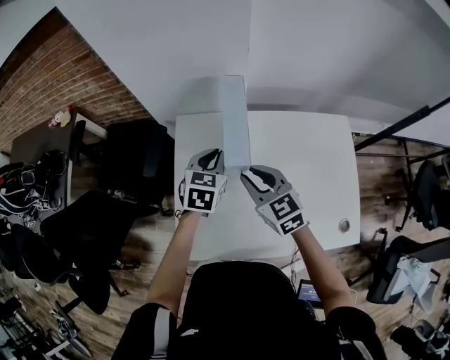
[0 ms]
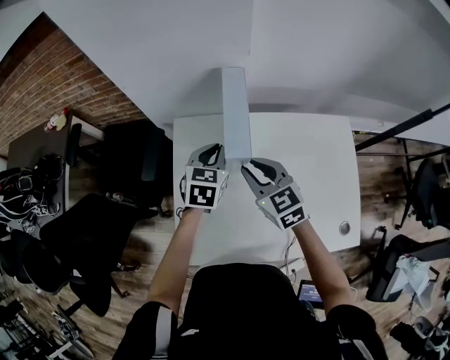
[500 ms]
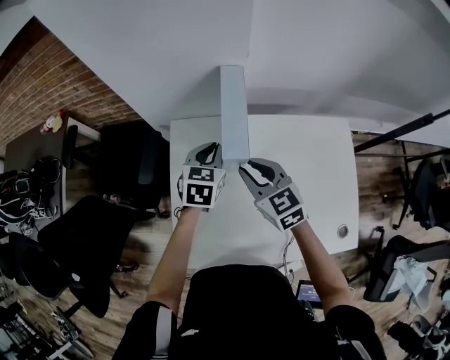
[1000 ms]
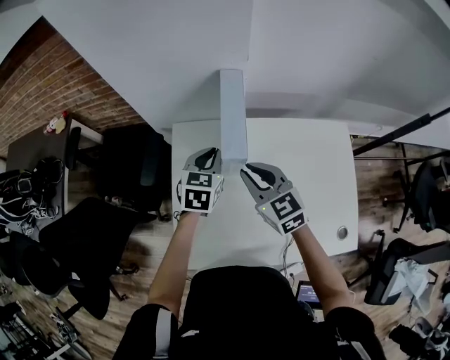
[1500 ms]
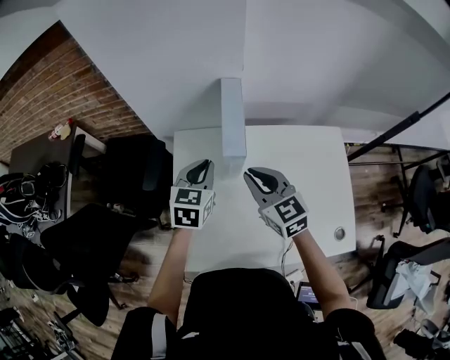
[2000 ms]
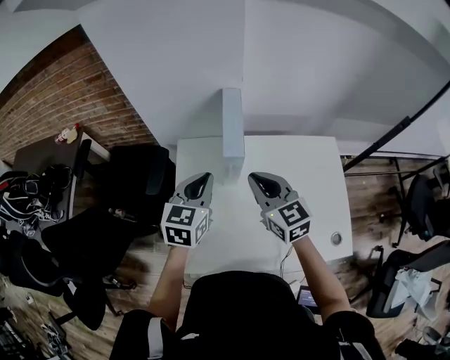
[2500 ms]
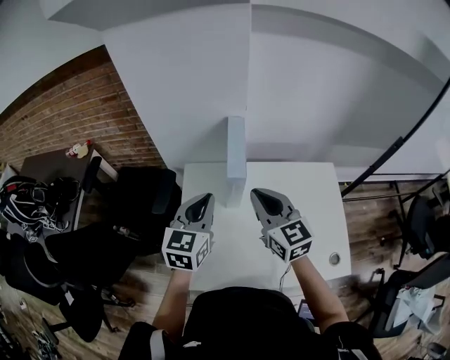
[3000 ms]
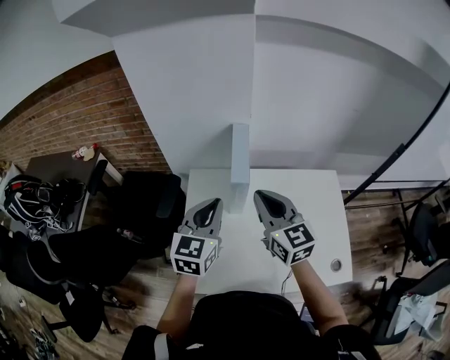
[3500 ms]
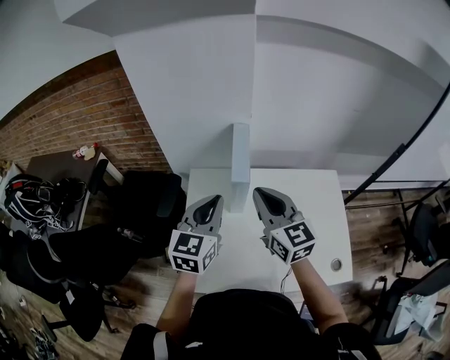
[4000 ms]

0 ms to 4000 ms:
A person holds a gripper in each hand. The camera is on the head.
0 ms to 2000 ms: The left gripper shifts by roughly 5 cm. Meanwhile the right gripper shifts by approximately 5 cm.
2000 ms to 4000 ms: The right gripper shifts some 15 cm upward; the left gripper travels upward and backward by approximately 15 cm.

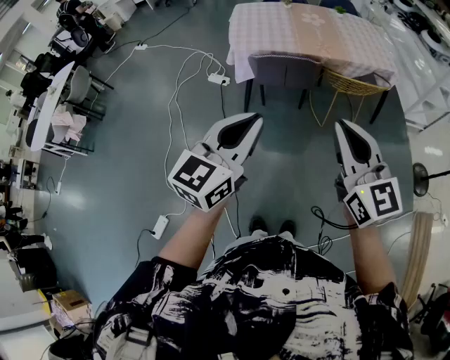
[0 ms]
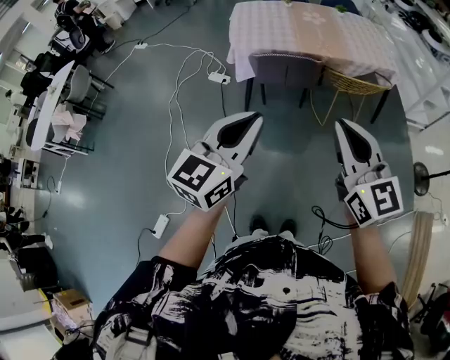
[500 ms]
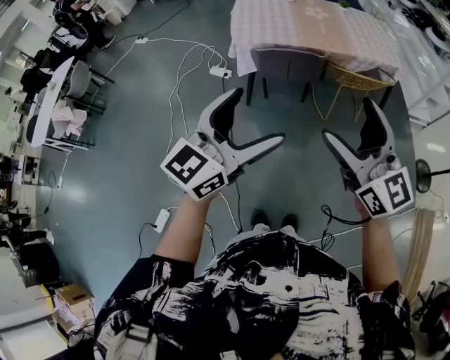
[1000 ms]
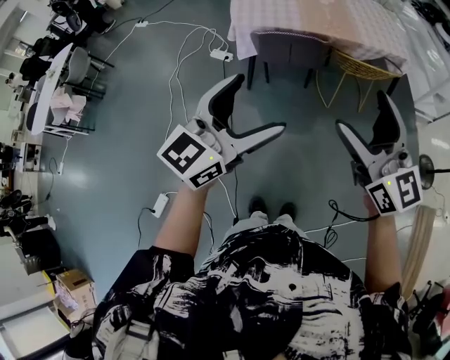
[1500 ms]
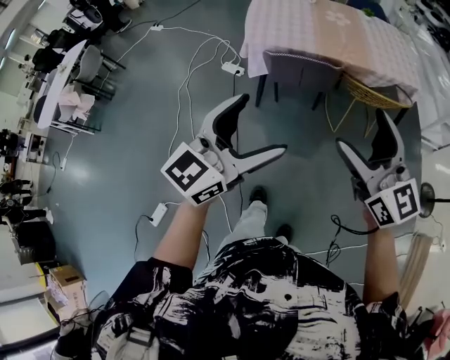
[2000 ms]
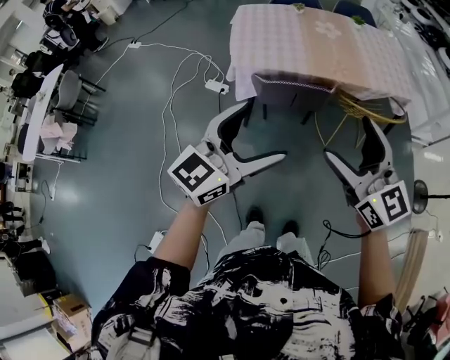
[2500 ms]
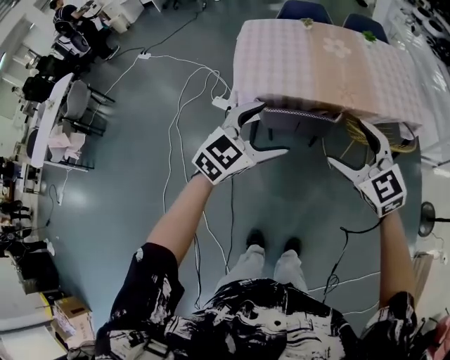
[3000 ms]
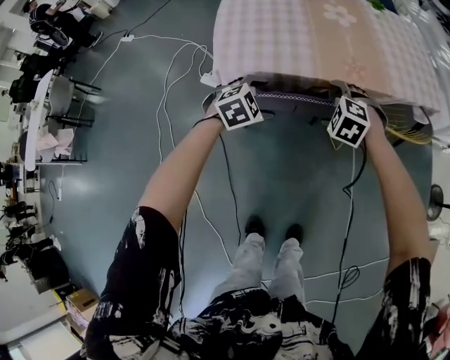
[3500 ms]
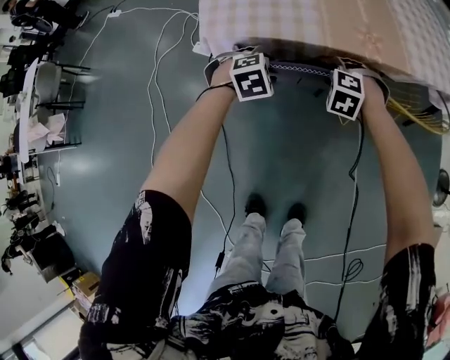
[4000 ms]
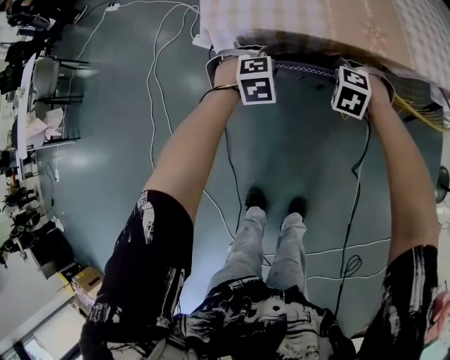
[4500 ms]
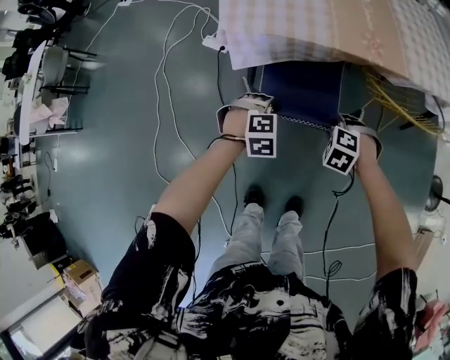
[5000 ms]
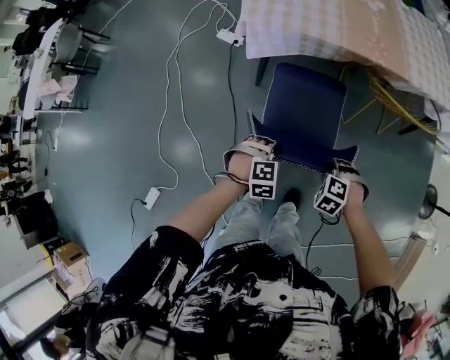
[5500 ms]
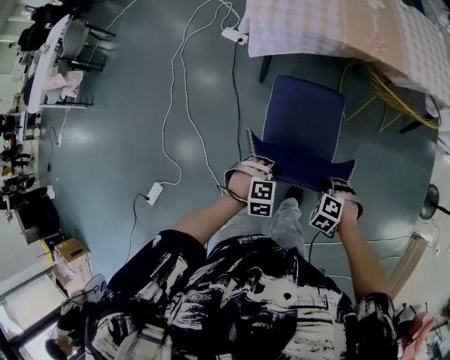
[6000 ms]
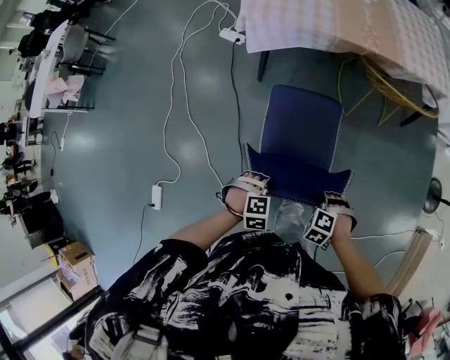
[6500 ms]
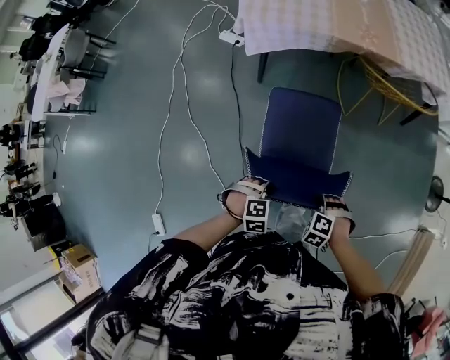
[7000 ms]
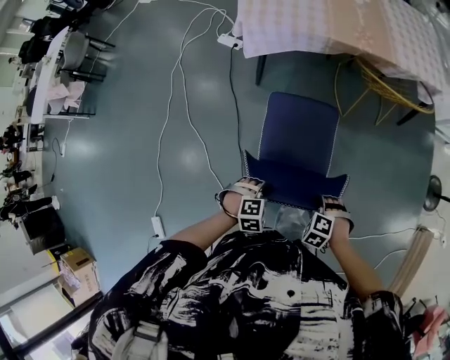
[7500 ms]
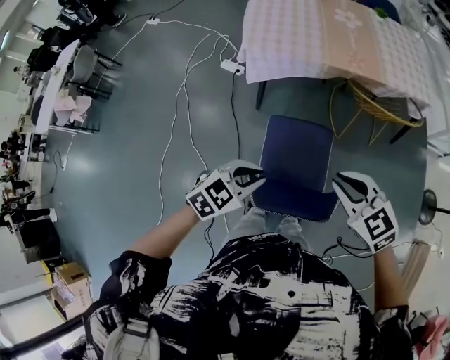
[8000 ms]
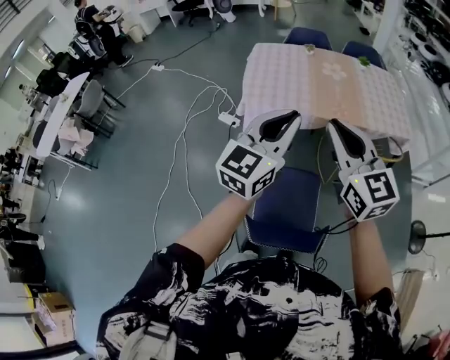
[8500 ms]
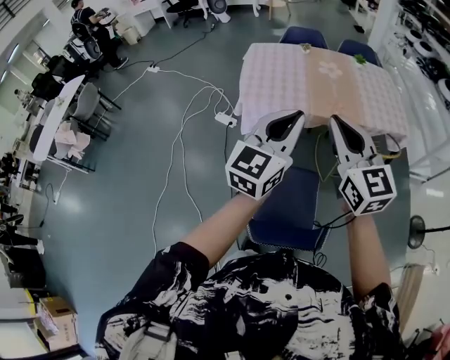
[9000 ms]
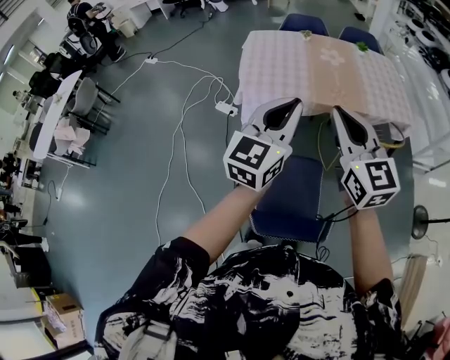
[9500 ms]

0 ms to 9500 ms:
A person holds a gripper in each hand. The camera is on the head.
0 ms to 2000 ms: Both grippers move forward, some 10 cm. The left gripper opens up. Meanwhile the right gripper opens.
2000 ms to 4000 ms: The two grippers travel together, forward, about 50 cm. The two grippers go roughly 50 cm downward. The left gripper tips its fingers downward by approximately 70 degrees, and closes up. The right gripper tips its fingers downward by some 70 degrees, and closes.
4000 ms to 5500 ms: The left gripper shifts by approximately 35 cm. The right gripper moves some 40 cm.
5500 ms to 7500 ms: The left gripper ends up roughly 20 cm from where it was. The right gripper moves some 20 cm.
7500 ms to 9500 ms: Both grippers move upward, approximately 50 cm. The left gripper tilts its fingers approximately 70 degrees upward; the right gripper angles its fingers upward, by some 80 degrees, and closes its fingers.

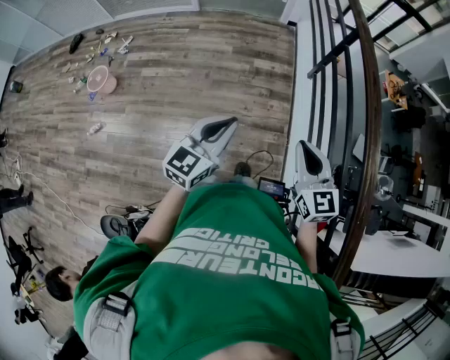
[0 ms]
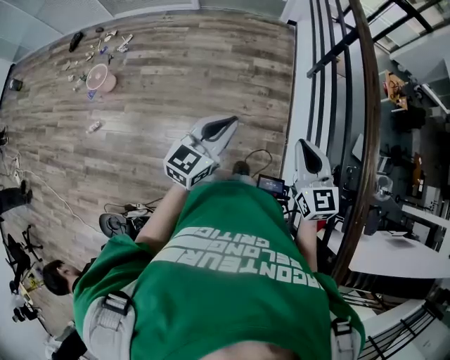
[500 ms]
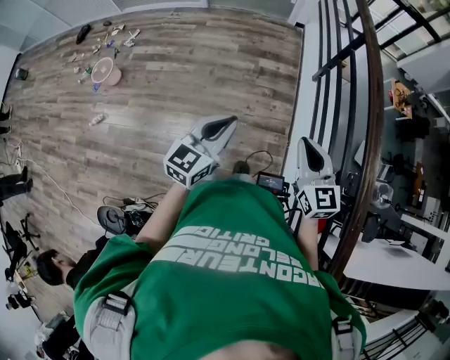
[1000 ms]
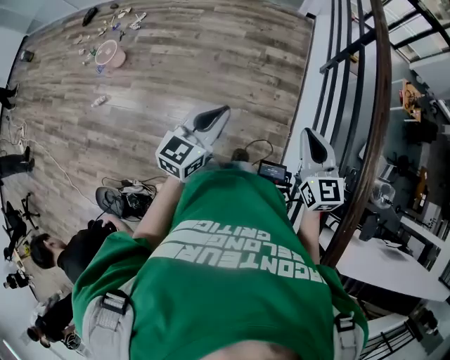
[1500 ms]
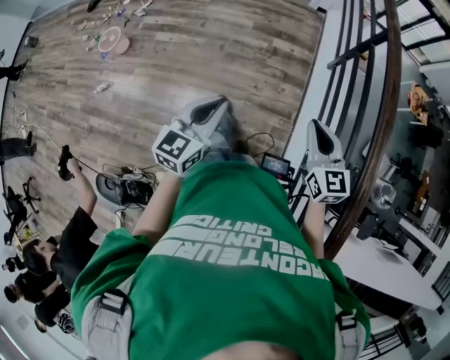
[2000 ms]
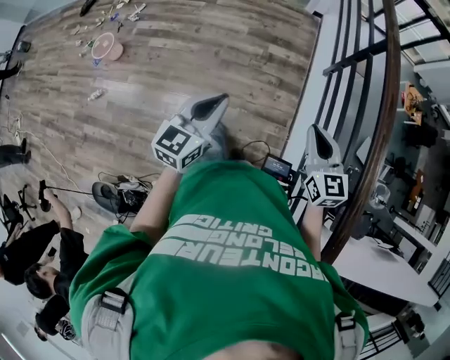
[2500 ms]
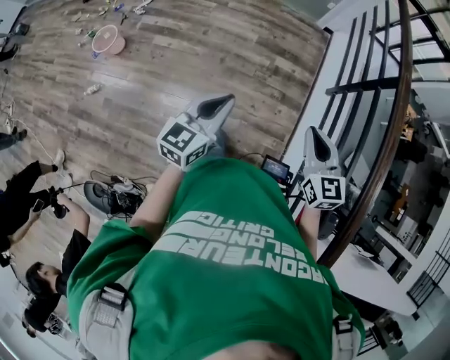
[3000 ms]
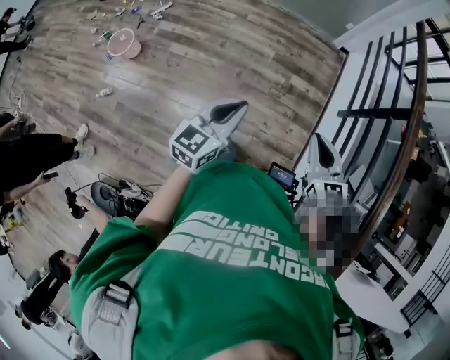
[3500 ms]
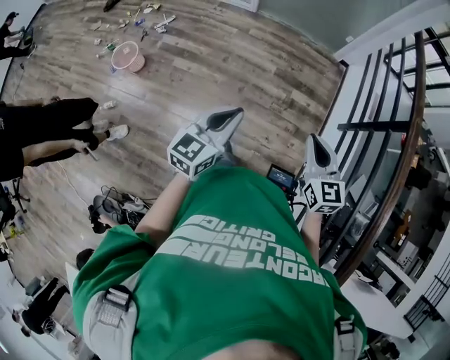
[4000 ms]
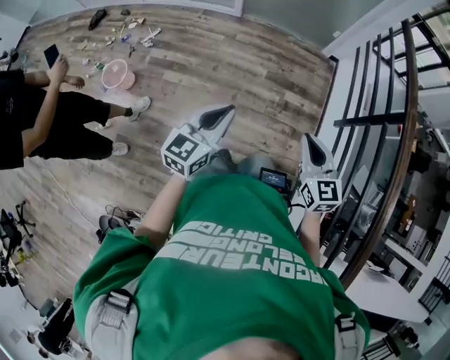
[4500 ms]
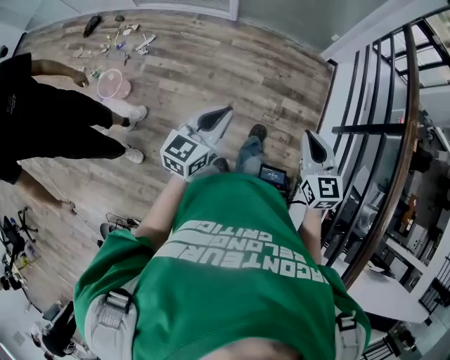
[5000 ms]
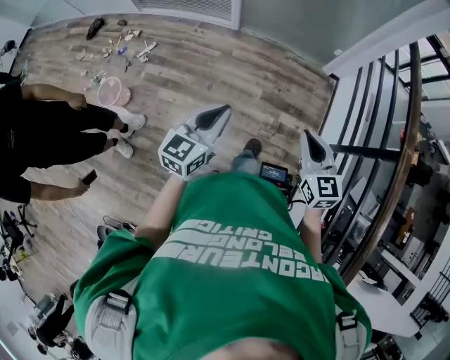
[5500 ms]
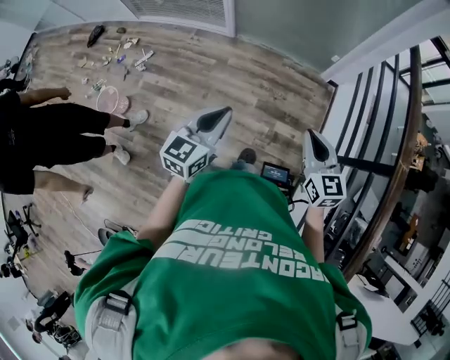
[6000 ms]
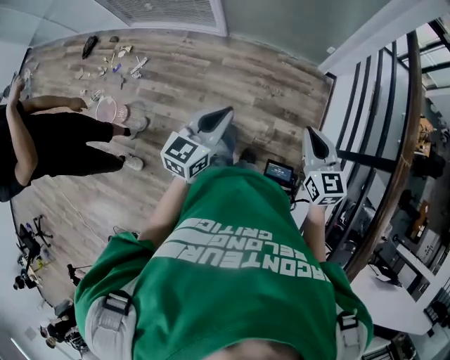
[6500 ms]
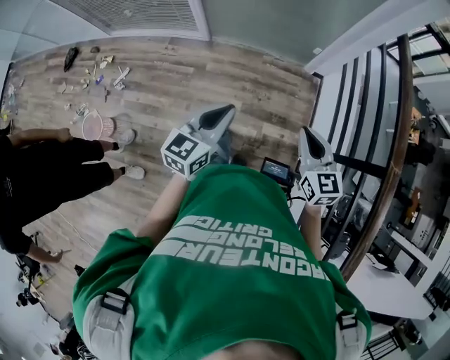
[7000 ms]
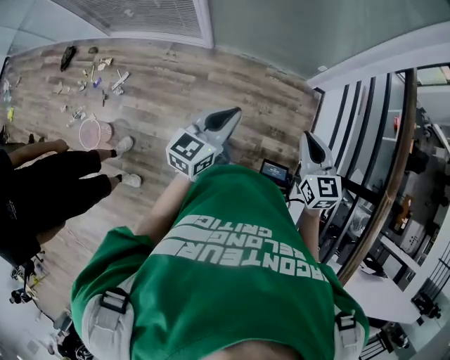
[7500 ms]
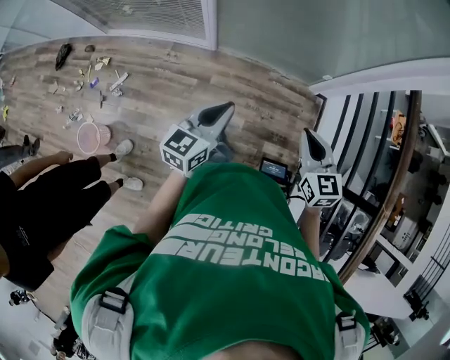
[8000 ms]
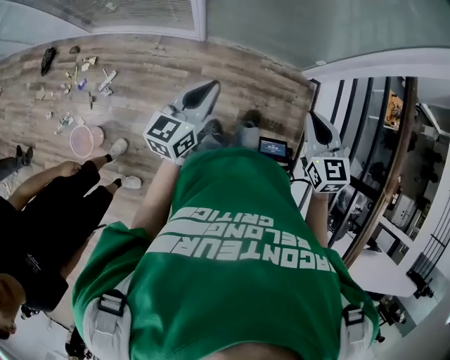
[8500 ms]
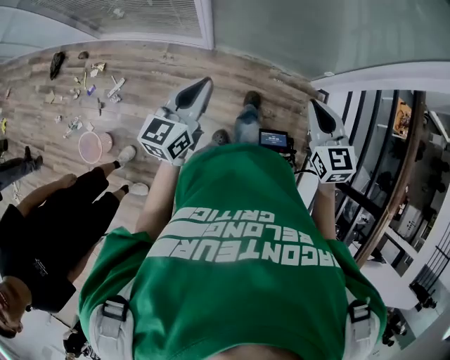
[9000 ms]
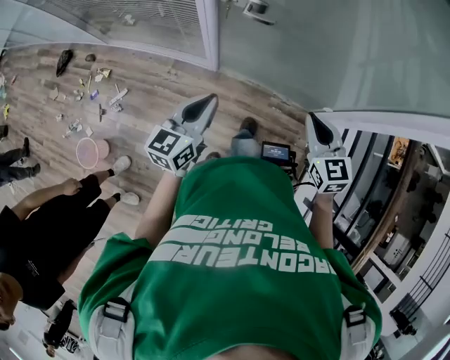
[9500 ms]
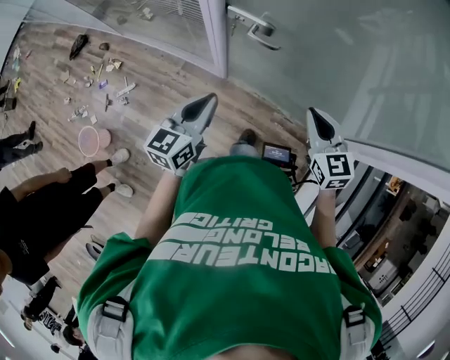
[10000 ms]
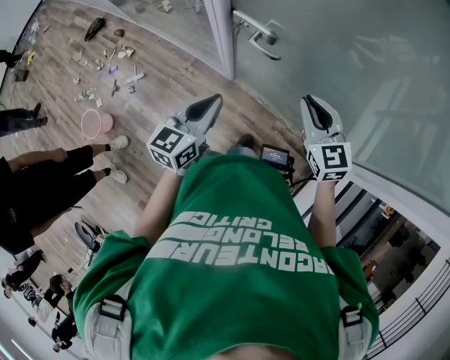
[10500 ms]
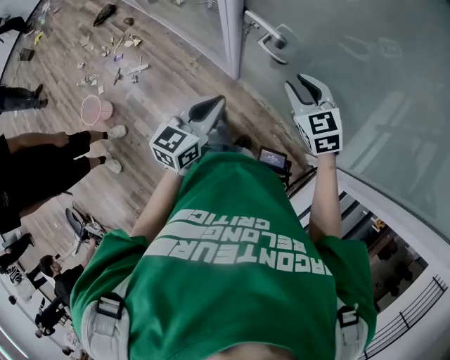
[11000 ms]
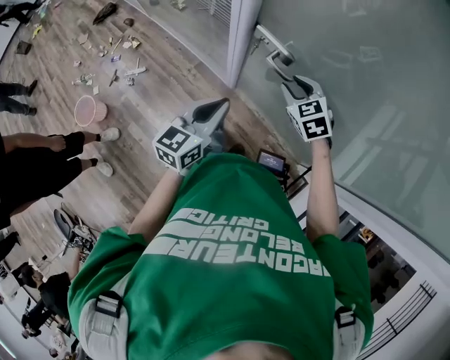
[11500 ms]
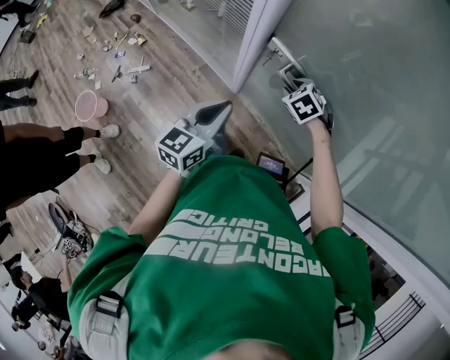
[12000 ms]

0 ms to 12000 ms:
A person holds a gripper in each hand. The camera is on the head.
0 ms to 2000 ms: The right gripper goes some 10 cm forward and to the right.
2000 ms to 4000 ms: Both grippers move forward and to the left, about 30 cm.
4000 ms to 6000 ms: Both grippers move forward, about 30 cm.
6000 ms to 8000 ms: The left gripper moves forward, approximately 30 cm; the right gripper moves forward and to the left, approximately 30 cm.
8000 ms to 10000 ms: The grippers both shift forward by roughly 30 cm. The left gripper turns by approximately 20 degrees. Meanwhile the right gripper rotates roughly 20 degrees.
10000 ms to 12000 ms: The right gripper shifts approximately 25 cm forward, downward and to the left, tilts its fingers approximately 40 degrees downward, and opens its fingers, while the left gripper shifts by roughly 5 cm.

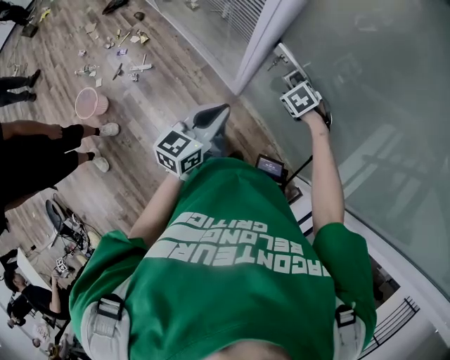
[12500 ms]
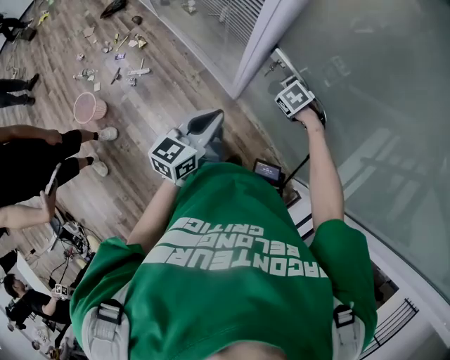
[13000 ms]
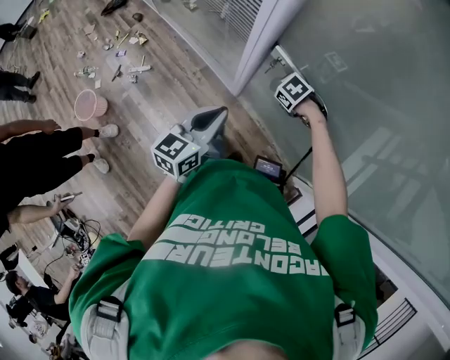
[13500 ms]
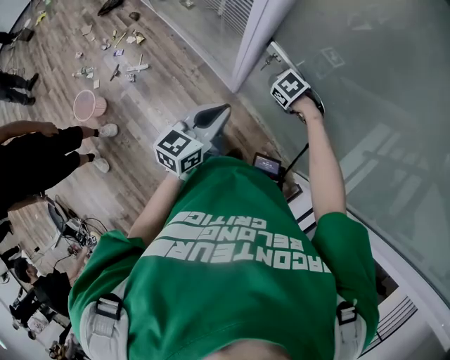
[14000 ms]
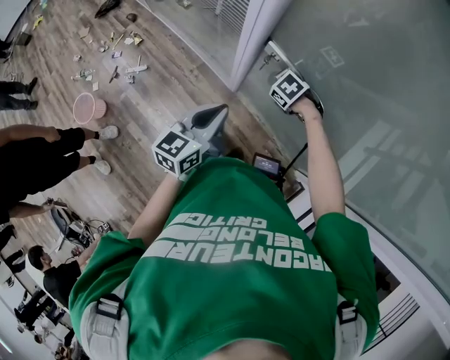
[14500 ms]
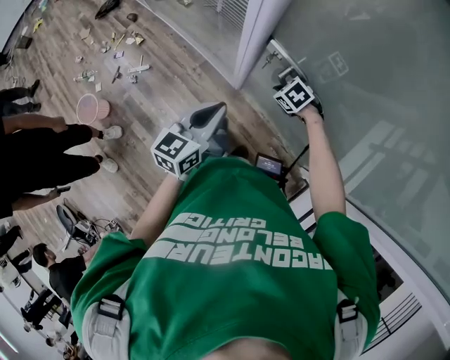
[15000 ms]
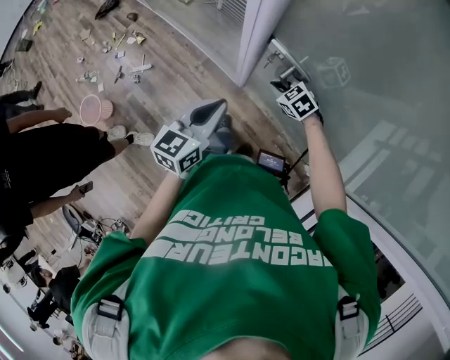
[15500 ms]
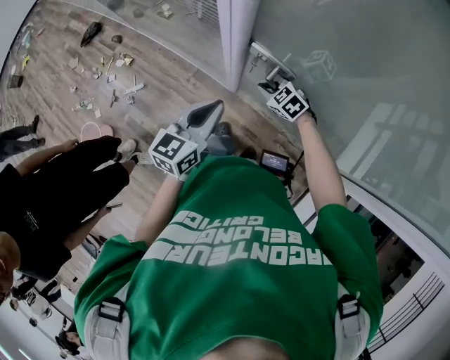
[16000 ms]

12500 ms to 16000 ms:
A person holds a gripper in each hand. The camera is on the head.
12500 ms to 14500 ms: The right gripper closes.
14500 ms to 16000 ms: The right gripper tips its fingers upward by some 30 degrees.
